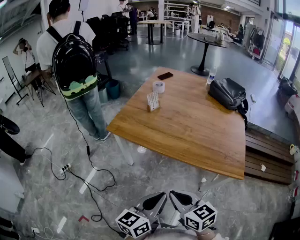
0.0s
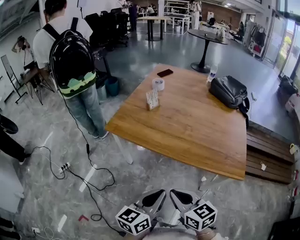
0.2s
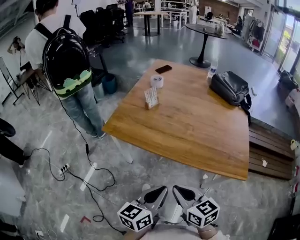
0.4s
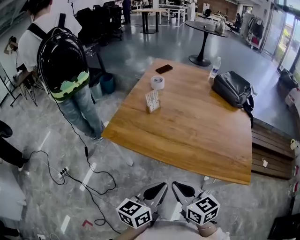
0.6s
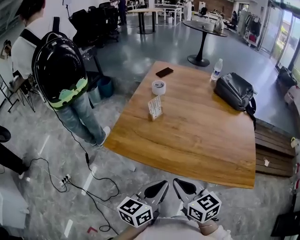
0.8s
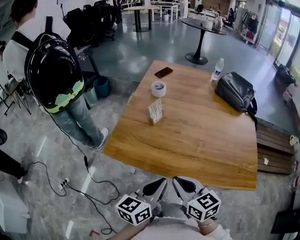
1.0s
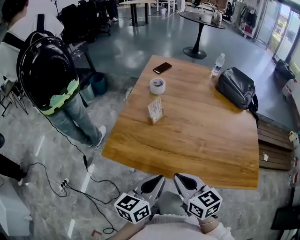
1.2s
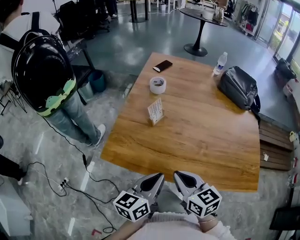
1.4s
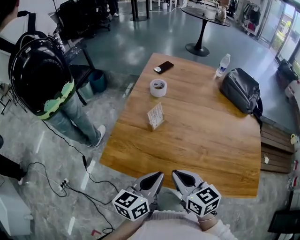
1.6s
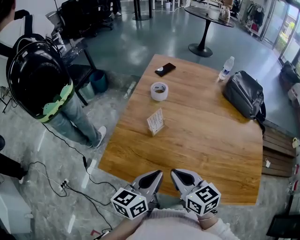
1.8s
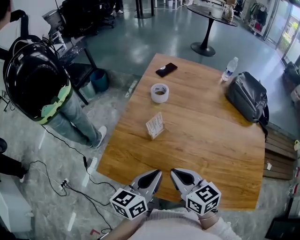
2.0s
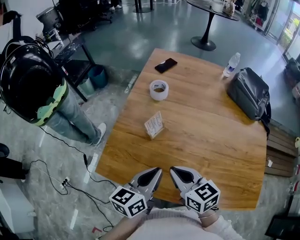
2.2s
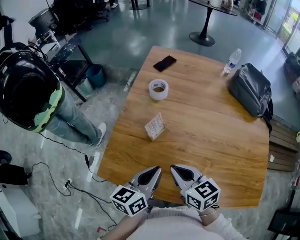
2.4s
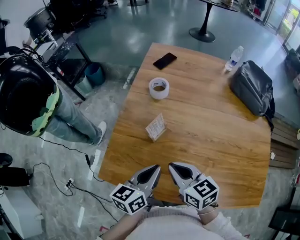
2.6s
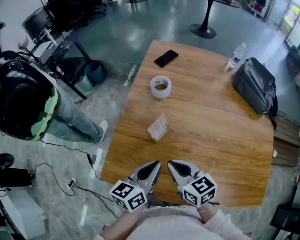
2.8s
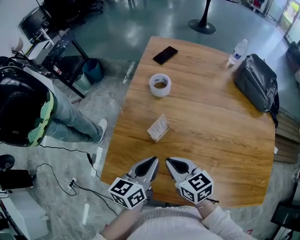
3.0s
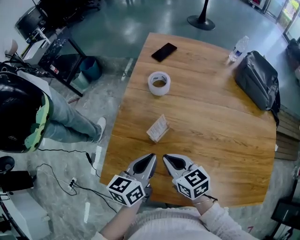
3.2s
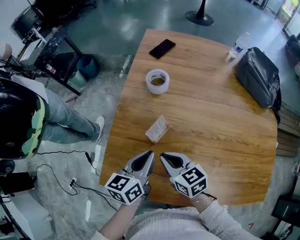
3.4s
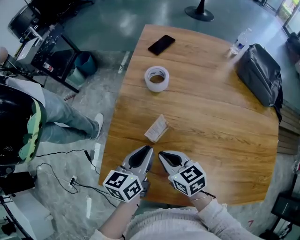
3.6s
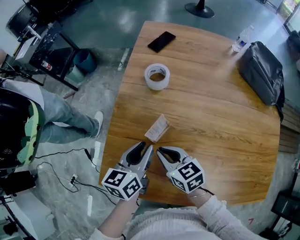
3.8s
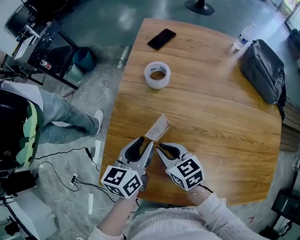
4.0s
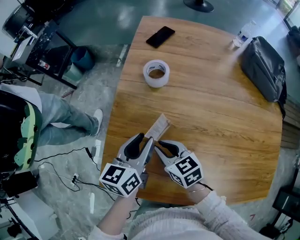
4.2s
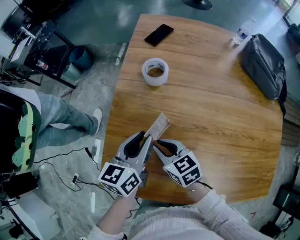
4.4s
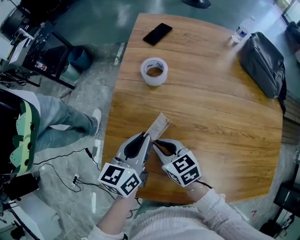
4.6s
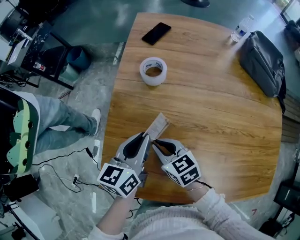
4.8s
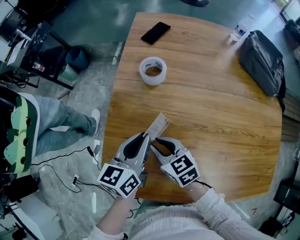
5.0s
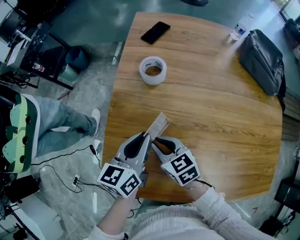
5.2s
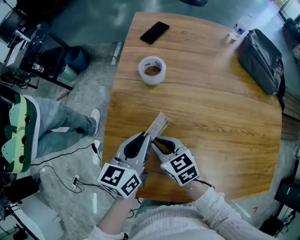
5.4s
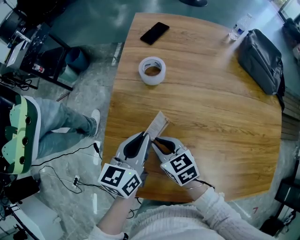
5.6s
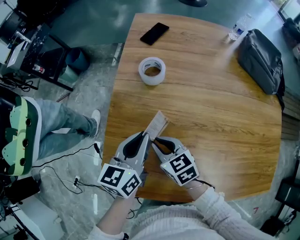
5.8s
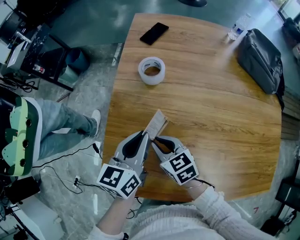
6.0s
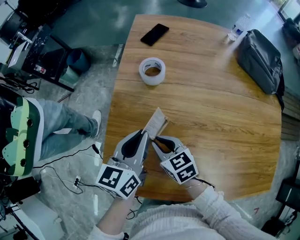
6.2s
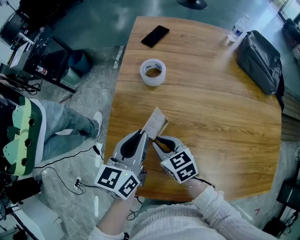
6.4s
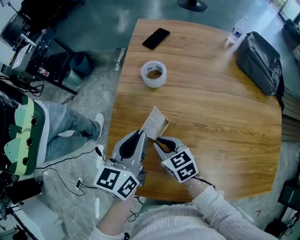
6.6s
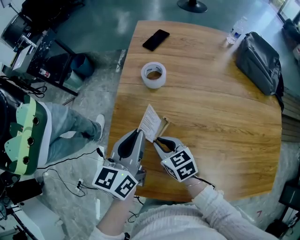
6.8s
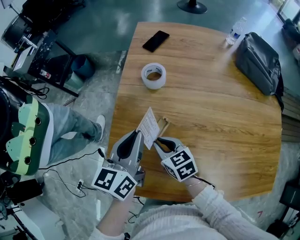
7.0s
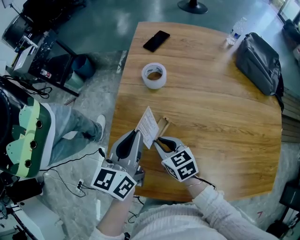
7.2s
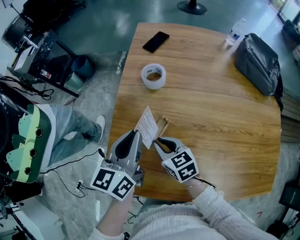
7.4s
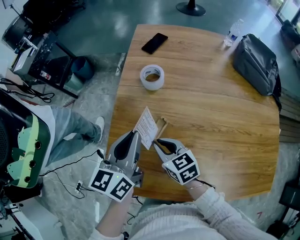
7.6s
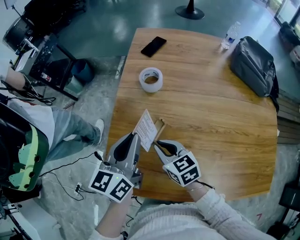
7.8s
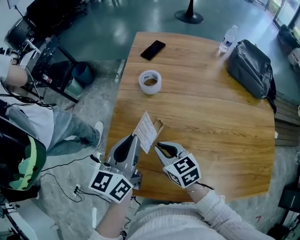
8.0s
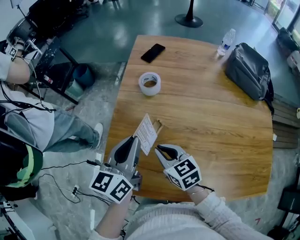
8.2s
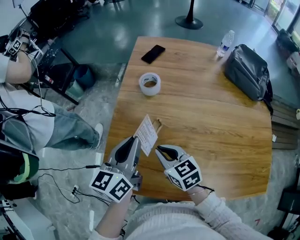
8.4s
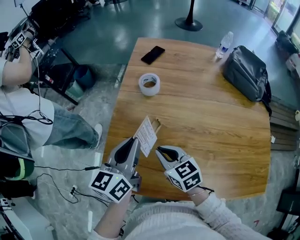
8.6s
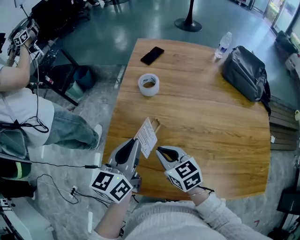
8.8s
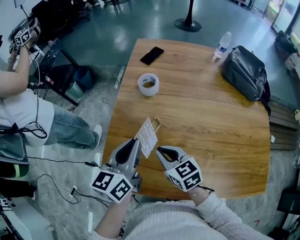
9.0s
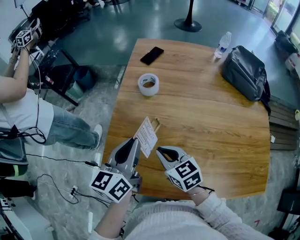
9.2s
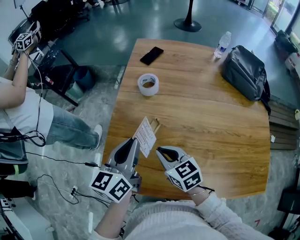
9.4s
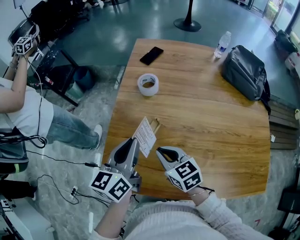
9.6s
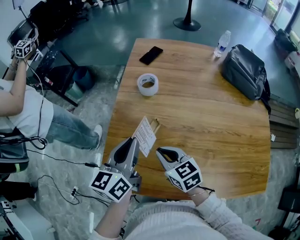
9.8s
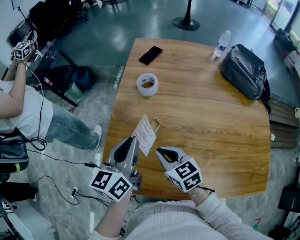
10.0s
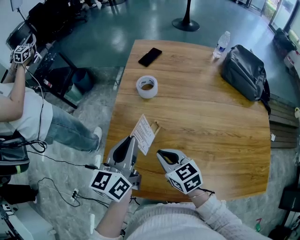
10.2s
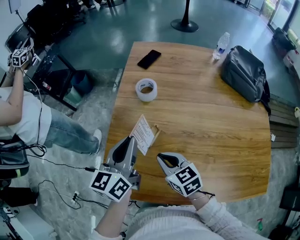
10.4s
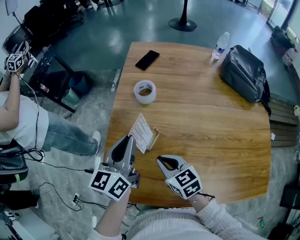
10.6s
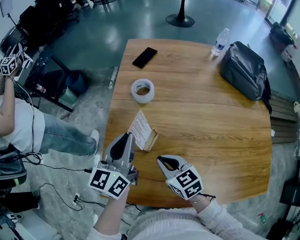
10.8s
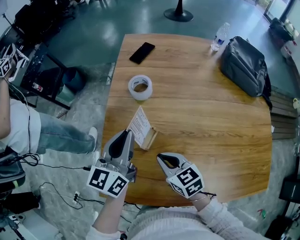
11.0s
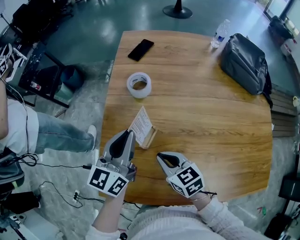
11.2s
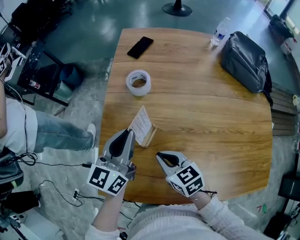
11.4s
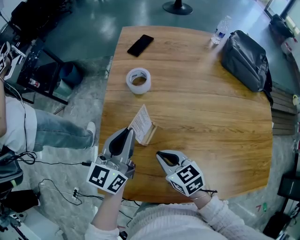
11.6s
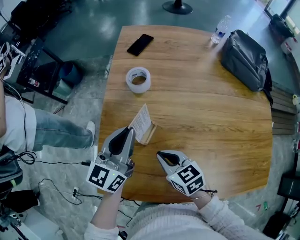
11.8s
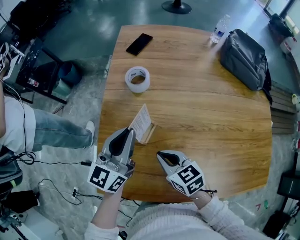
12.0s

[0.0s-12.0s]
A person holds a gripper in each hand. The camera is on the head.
0.0s to 1.6s: The grippers both shift forward by about 35 cm.
1.6s to 3.0s: The right gripper shifts some 15 cm forward and downward. Meanwhile the left gripper is displaced forward by roughly 15 cm.
3.0s to 4.4s: The right gripper travels forward and downward by approximately 10 cm. Meanwhile the left gripper is displaced forward by about 10 cm, and opens.
4.4s to 6.0s: The grippers make only small movements.
6.0s to 7.6s: The left gripper travels upward by some 5 cm.
7.6s to 9.0s: Both grippers travel together backward, approximately 5 cm.
9.0s to 10.4s: The grippers move only a little.
10.4s to 12.0s: The left gripper shifts by some 5 cm.

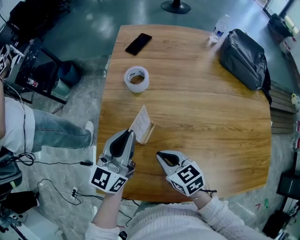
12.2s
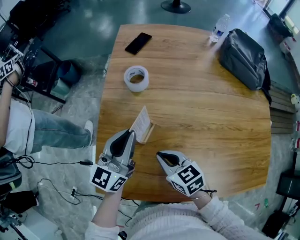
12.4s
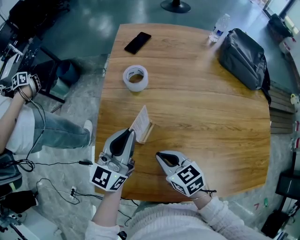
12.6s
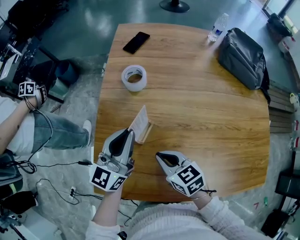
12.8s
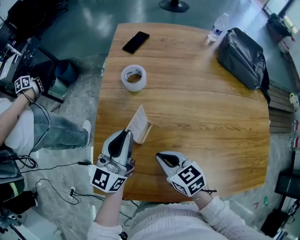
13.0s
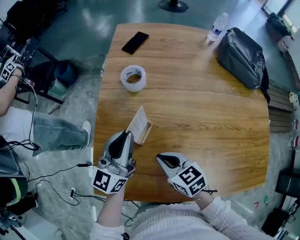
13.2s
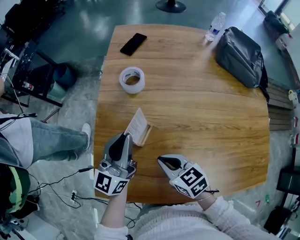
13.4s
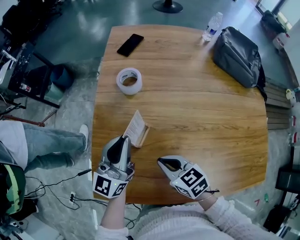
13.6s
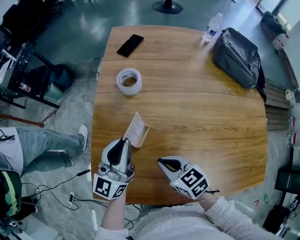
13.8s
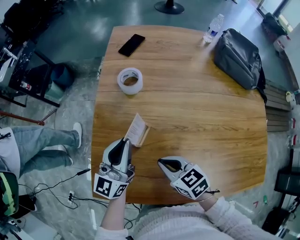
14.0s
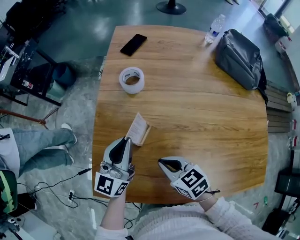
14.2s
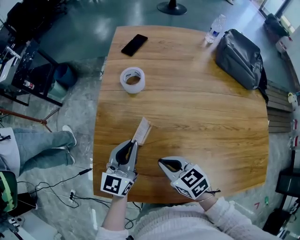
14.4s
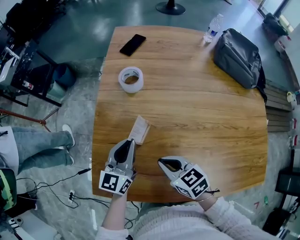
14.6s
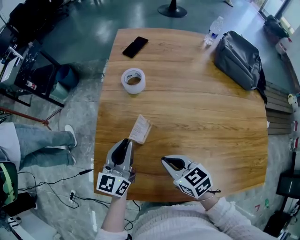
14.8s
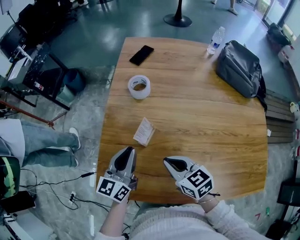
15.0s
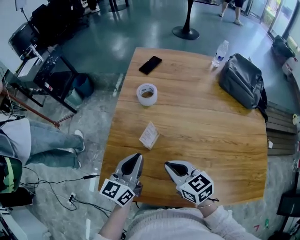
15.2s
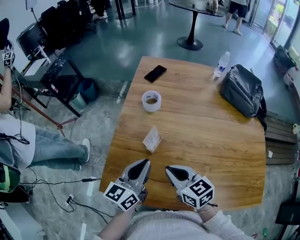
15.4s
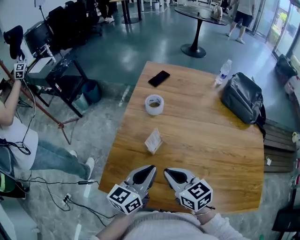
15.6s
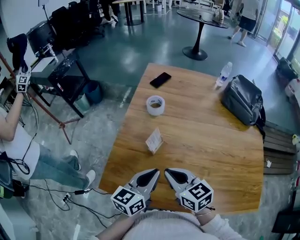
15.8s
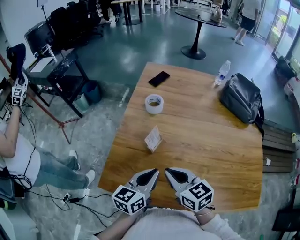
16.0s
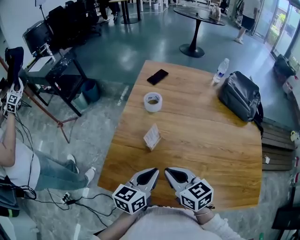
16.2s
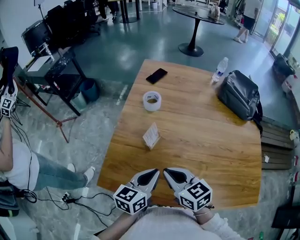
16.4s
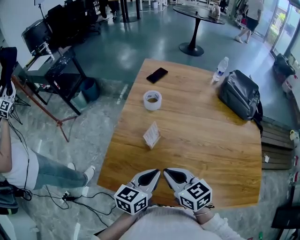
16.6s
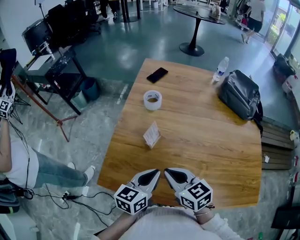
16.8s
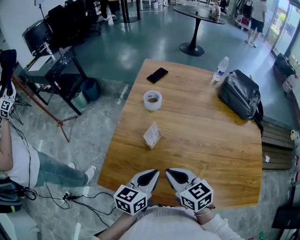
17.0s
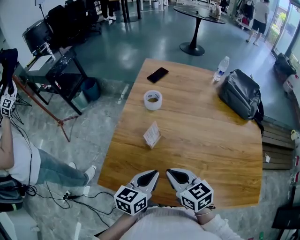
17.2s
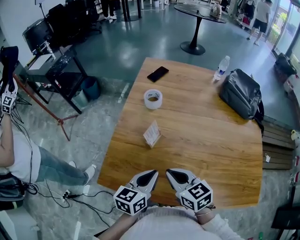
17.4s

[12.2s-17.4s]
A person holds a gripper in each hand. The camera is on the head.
12.2s to 14.0s: The grippers stay close to where they were, moving slightly.
14.0s to 15.6s: The right gripper travels upward by some 10 cm. The left gripper is displaced backward by some 10 cm, and turns by some 20 degrees.
15.6s to 17.4s: The left gripper ends up some 5 cm from where it was.

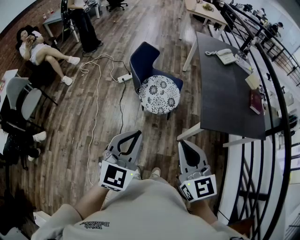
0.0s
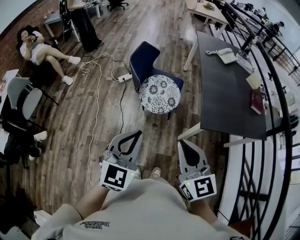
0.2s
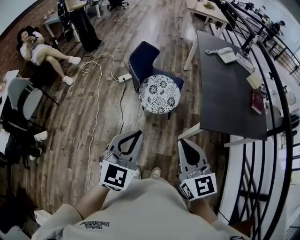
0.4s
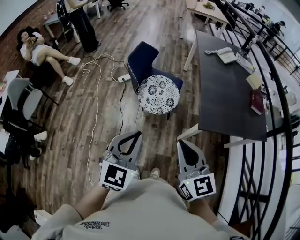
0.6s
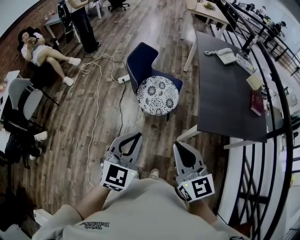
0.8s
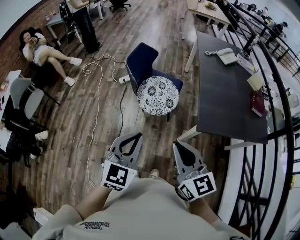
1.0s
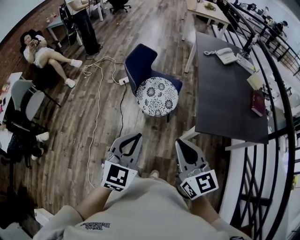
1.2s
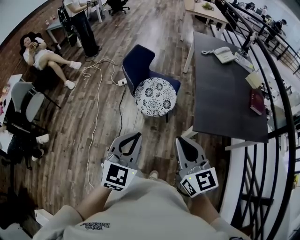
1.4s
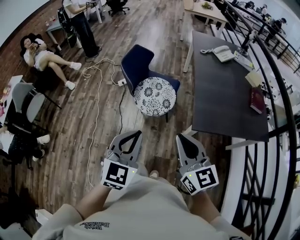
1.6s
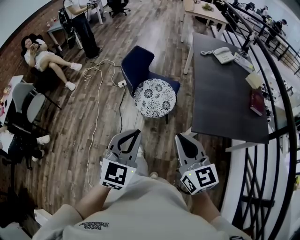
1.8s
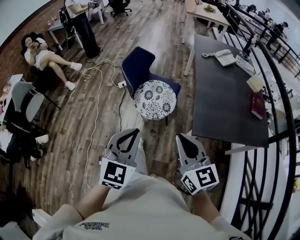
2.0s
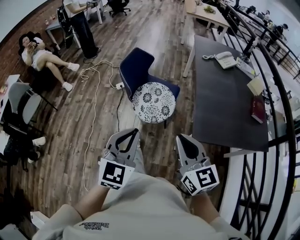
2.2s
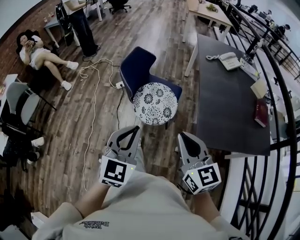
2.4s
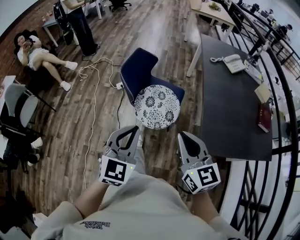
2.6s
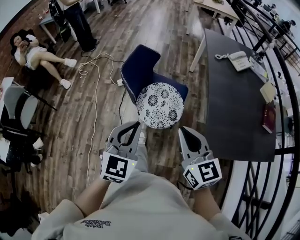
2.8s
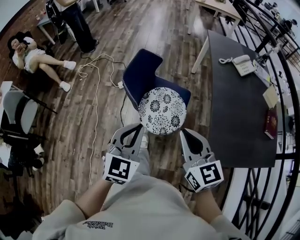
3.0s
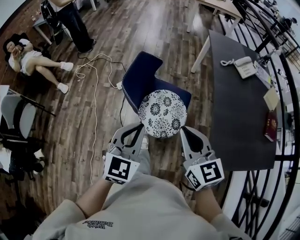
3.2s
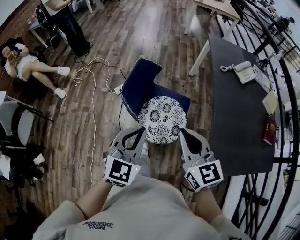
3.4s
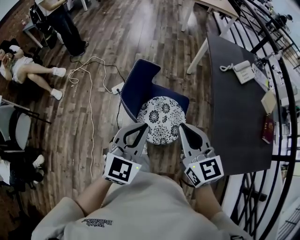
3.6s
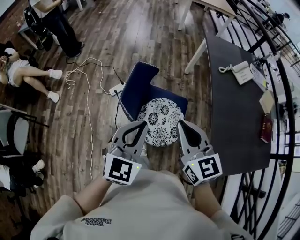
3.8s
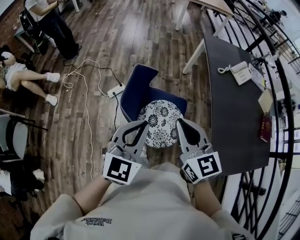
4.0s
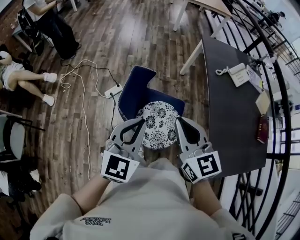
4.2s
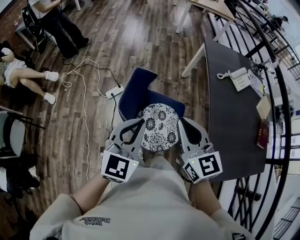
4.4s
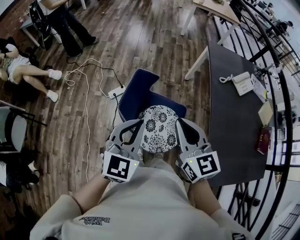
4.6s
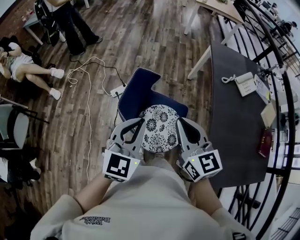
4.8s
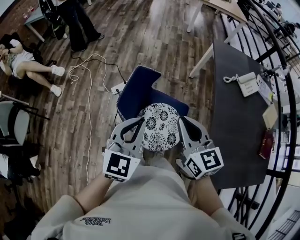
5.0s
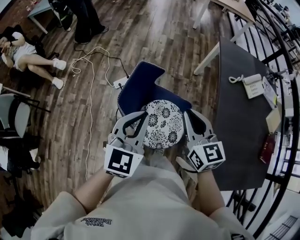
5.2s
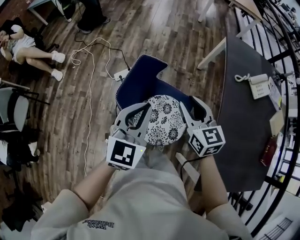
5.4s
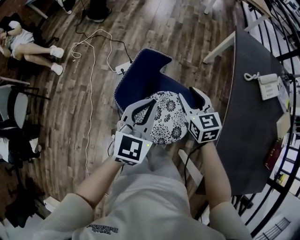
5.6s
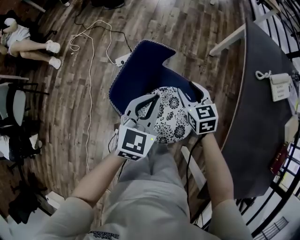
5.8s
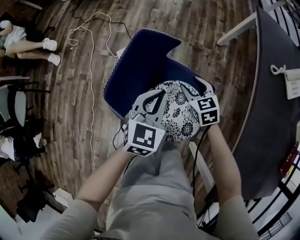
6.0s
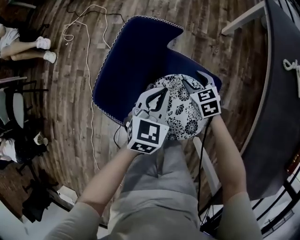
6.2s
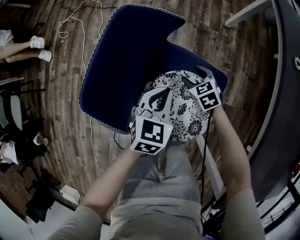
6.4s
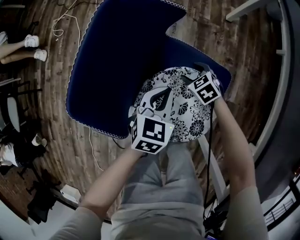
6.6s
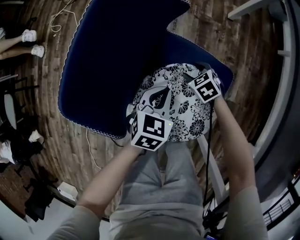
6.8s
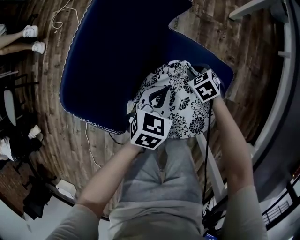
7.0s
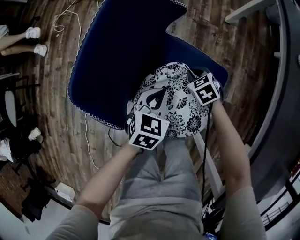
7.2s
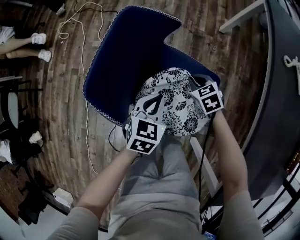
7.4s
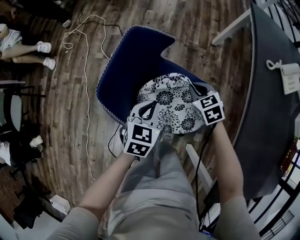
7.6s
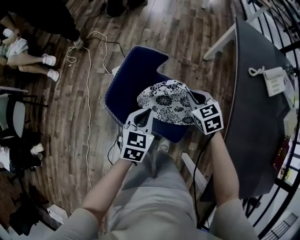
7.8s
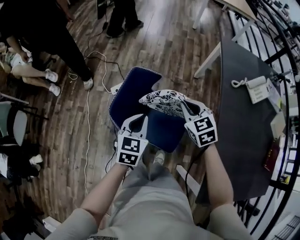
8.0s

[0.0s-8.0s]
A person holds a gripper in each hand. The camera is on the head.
0.0s to 1.6s: Both grippers move to the right, about 10 cm.
1.6s to 3.2s: Both grippers move forward, some 35 cm.
3.2s to 4.8s: Both grippers travel together forward, roughly 20 cm.
4.8s to 6.4s: Both grippers move downward, approximately 50 cm. The left gripper swivels about 30 degrees, while the right gripper angles its fingers downward, by some 40 degrees, and opens its fingers.
6.4s to 8.0s: The left gripper moves upward, some 25 cm; the right gripper moves upward, roughly 40 cm, changes its angle by approximately 20 degrees, and closes up.
